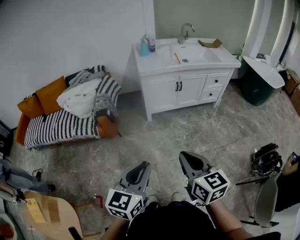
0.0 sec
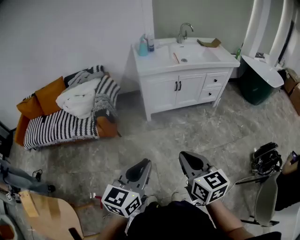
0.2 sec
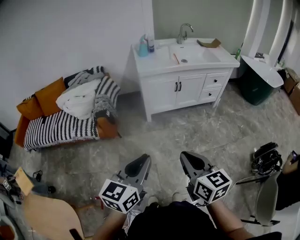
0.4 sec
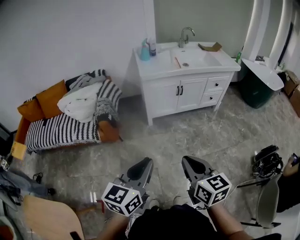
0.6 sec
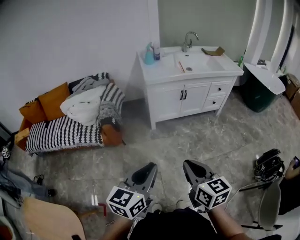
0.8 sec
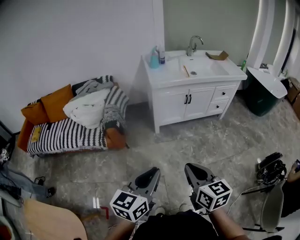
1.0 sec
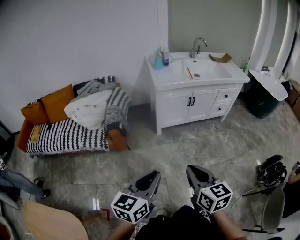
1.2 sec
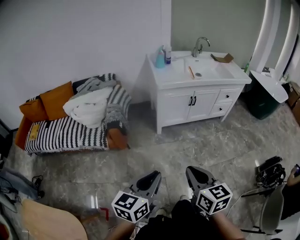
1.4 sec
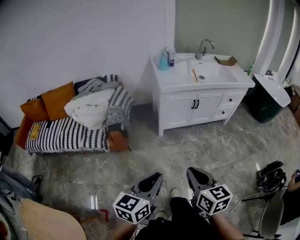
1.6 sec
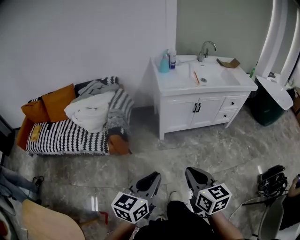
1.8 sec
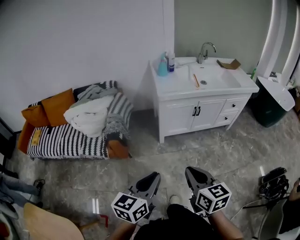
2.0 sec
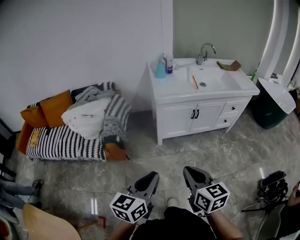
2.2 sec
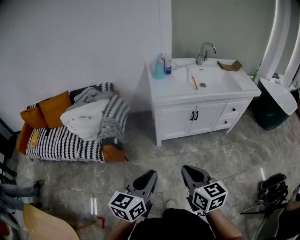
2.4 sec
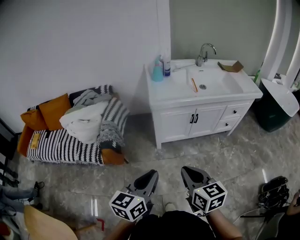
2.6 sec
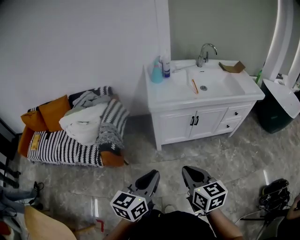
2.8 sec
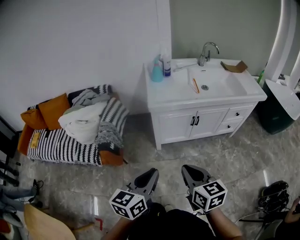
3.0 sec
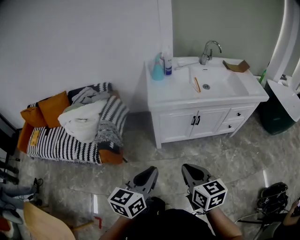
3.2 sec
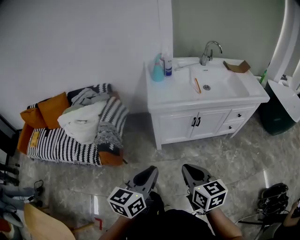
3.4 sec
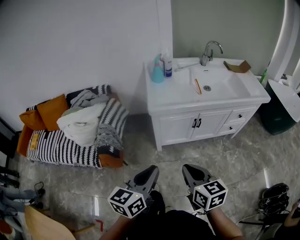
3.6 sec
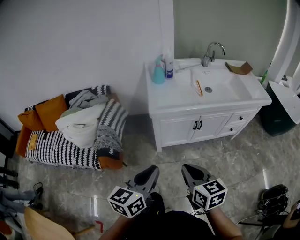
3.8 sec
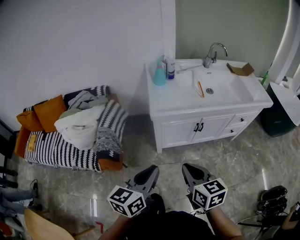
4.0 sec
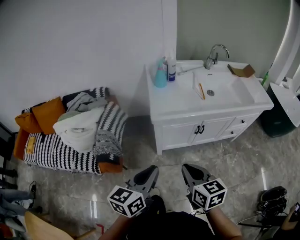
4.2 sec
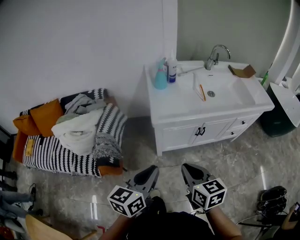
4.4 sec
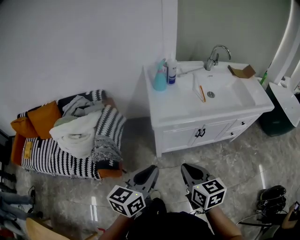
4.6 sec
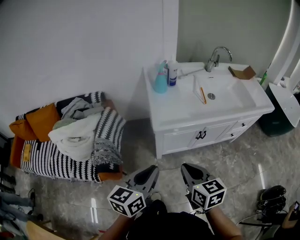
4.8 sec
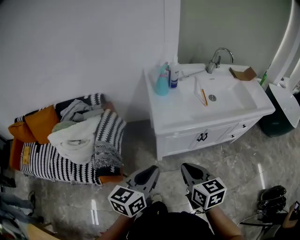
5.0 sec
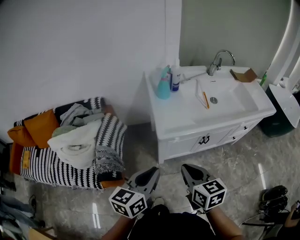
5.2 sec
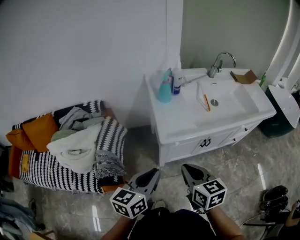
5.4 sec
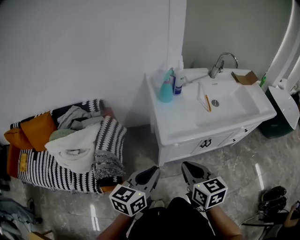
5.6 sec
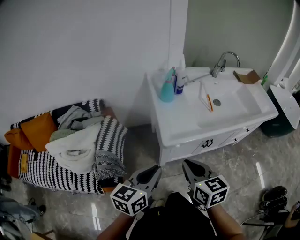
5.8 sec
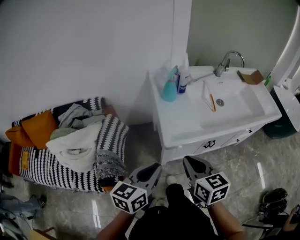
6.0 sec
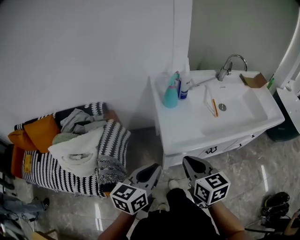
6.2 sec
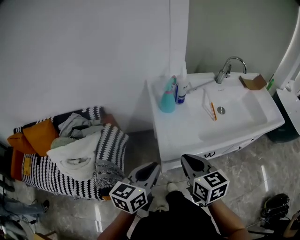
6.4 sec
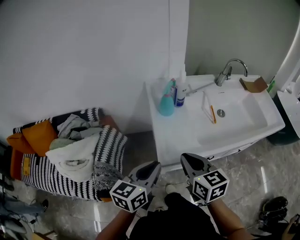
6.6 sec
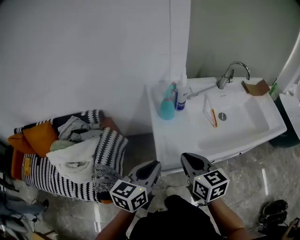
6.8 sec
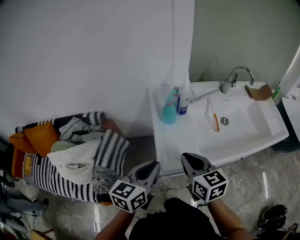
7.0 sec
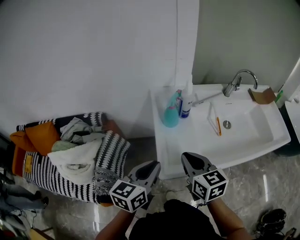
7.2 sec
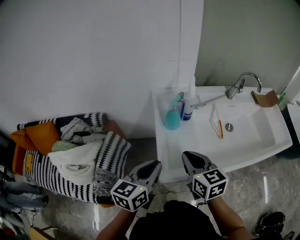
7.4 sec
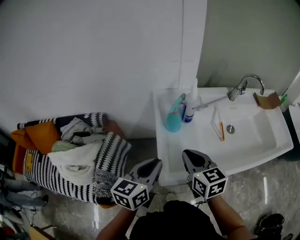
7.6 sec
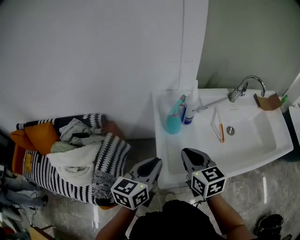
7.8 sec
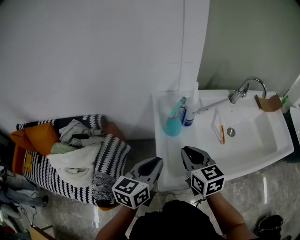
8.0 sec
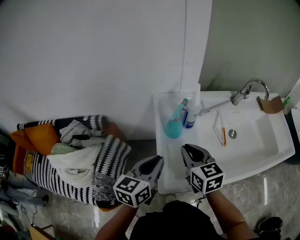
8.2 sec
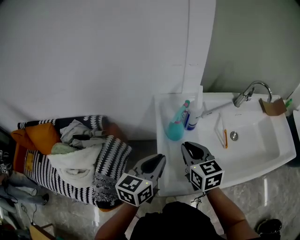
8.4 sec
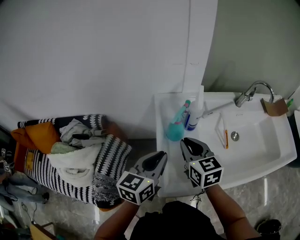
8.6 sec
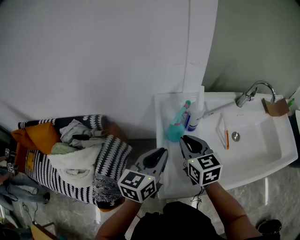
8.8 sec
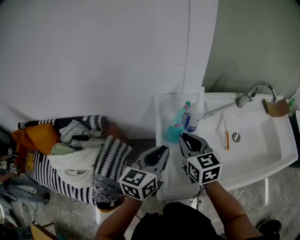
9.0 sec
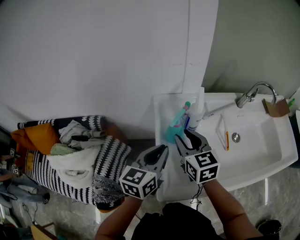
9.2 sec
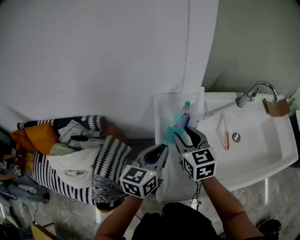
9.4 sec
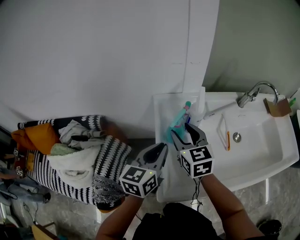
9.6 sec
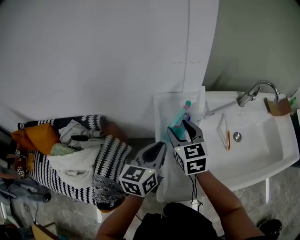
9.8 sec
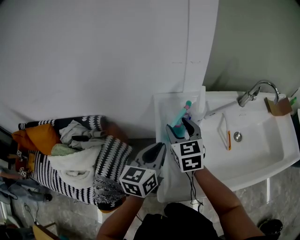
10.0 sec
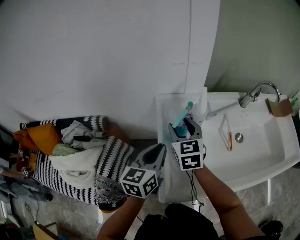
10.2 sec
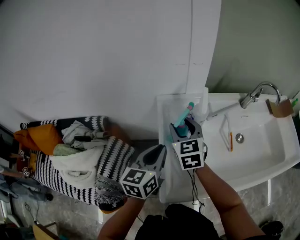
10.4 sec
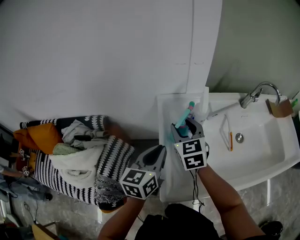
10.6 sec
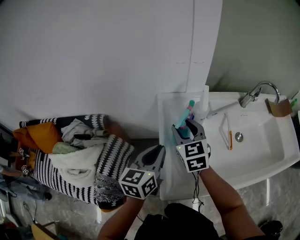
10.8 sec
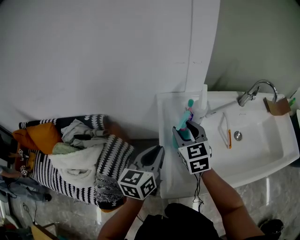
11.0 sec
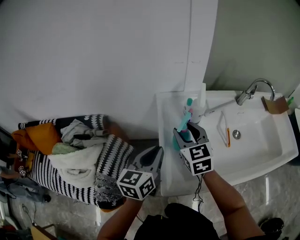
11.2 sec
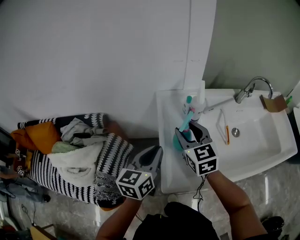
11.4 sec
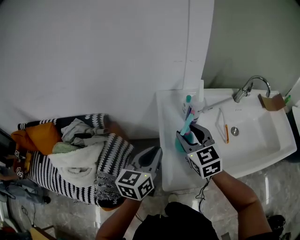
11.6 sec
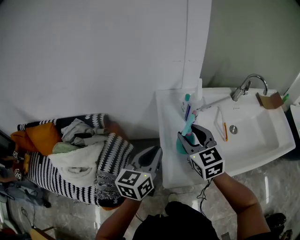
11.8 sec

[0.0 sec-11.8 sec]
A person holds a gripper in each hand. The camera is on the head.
0.0 sec to 1.4 sec: The left gripper moves to the left and forward, about 10 cm. Meanwhile the right gripper is displaced to the left by approximately 10 cm.
1.4 sec to 3.0 sec: The two grippers go approximately 25 cm forward.
3.0 sec to 4.4 sec: The two grippers go some 15 cm forward.
4.4 sec to 6.0 sec: Both grippers move forward and to the left, approximately 20 cm.
6.0 sec to 7.4 sec: Both grippers travel together forward, roughly 20 cm.
7.4 sec to 8.8 sec: Both grippers travel together forward, some 15 cm.
8.8 sec to 10.4 sec: The right gripper heads forward, covering about 10 cm, and opens.
10.4 sec to 11.8 sec: The two grippers go some 10 cm backward.

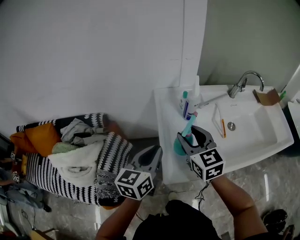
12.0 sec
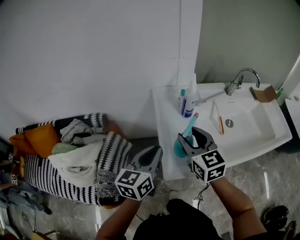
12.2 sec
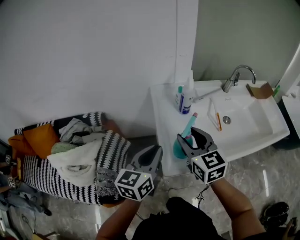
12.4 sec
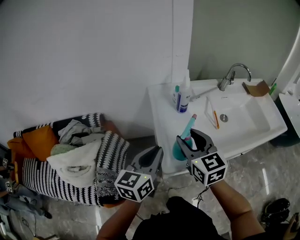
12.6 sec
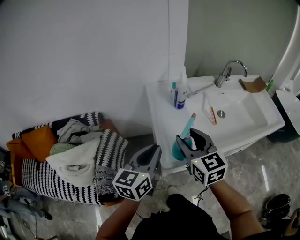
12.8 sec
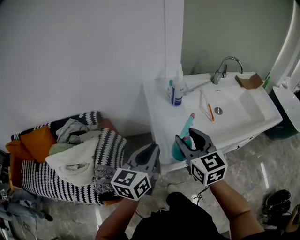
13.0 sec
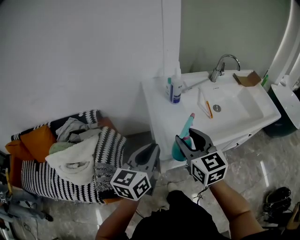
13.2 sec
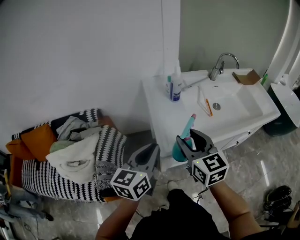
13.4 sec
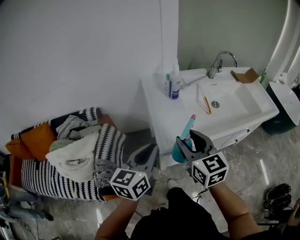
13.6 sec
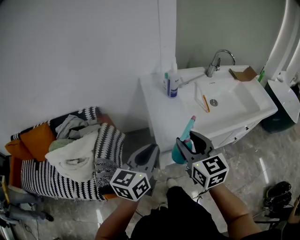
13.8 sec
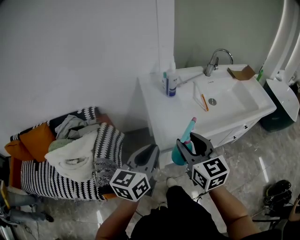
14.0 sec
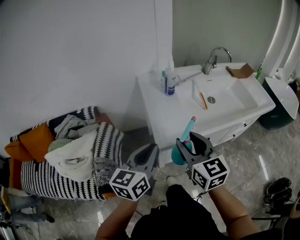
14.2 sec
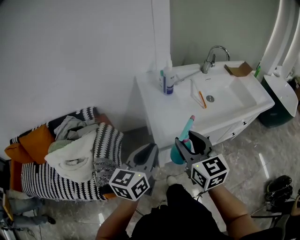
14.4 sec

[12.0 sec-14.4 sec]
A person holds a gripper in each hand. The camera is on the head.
12.0 sec to 13.2 sec: Both grippers move backward, roughly 15 cm.
13.2 sec to 14.4 sec: Both grippers move backward, roughly 5 cm.

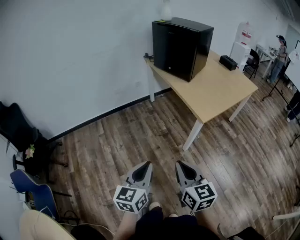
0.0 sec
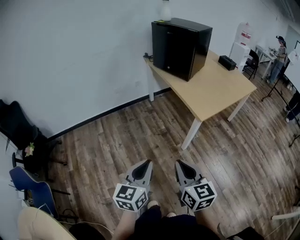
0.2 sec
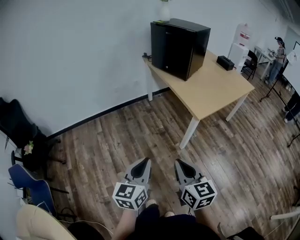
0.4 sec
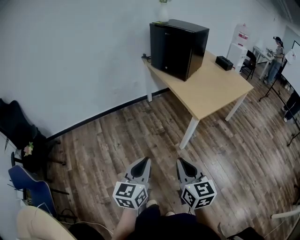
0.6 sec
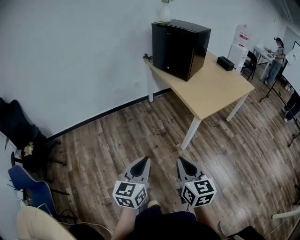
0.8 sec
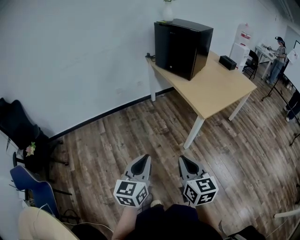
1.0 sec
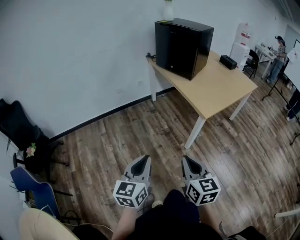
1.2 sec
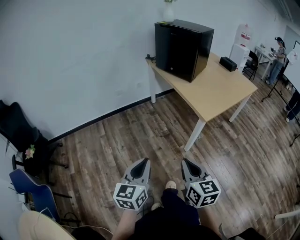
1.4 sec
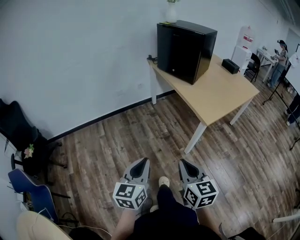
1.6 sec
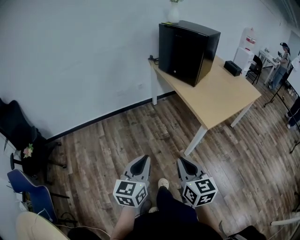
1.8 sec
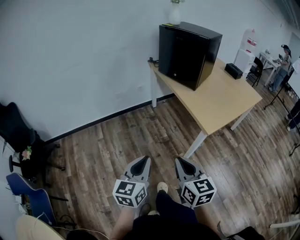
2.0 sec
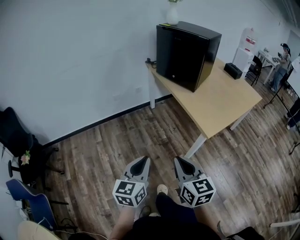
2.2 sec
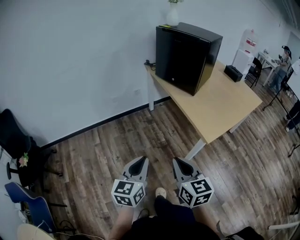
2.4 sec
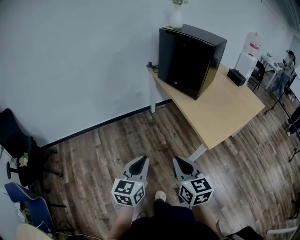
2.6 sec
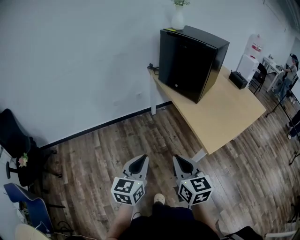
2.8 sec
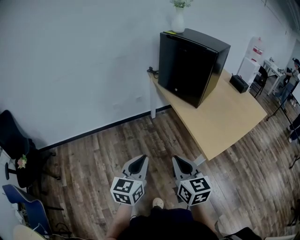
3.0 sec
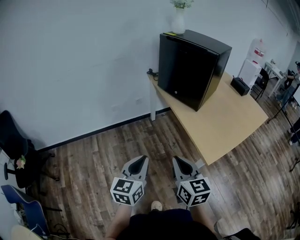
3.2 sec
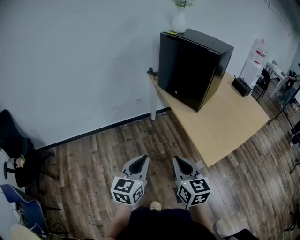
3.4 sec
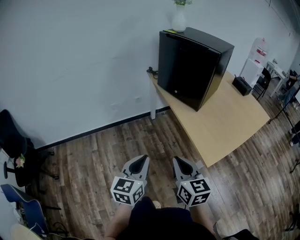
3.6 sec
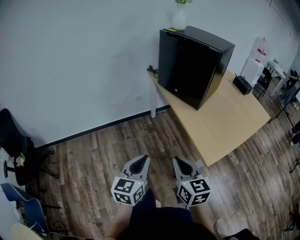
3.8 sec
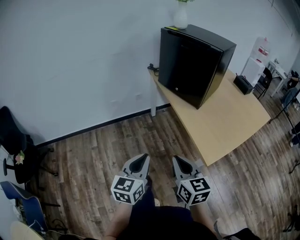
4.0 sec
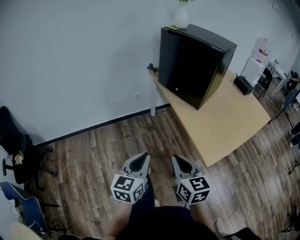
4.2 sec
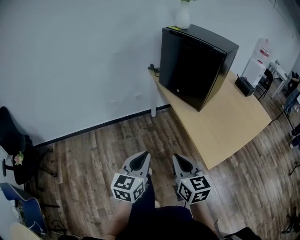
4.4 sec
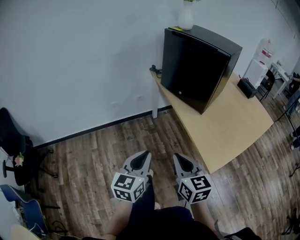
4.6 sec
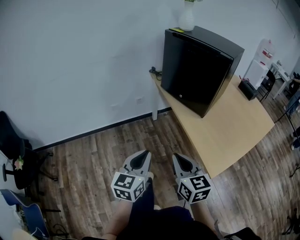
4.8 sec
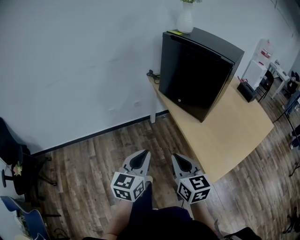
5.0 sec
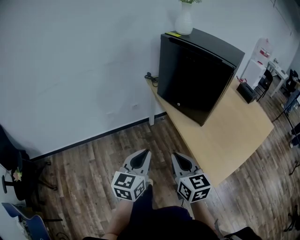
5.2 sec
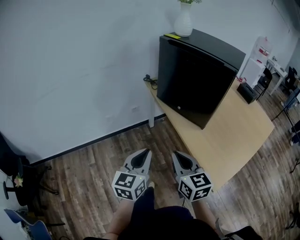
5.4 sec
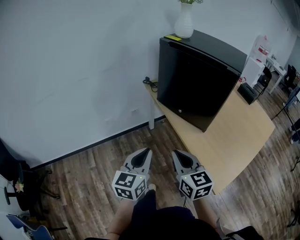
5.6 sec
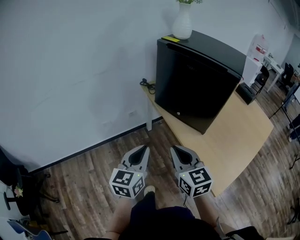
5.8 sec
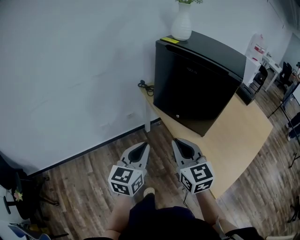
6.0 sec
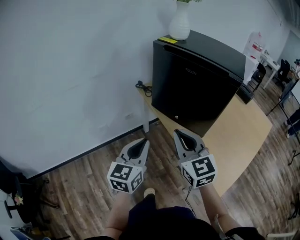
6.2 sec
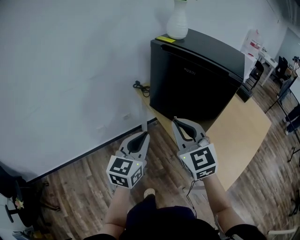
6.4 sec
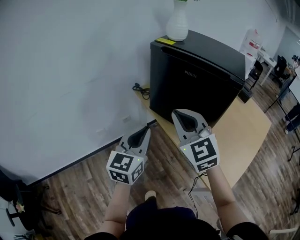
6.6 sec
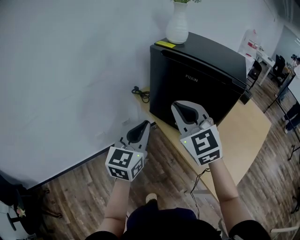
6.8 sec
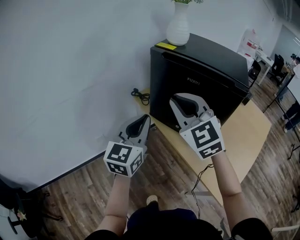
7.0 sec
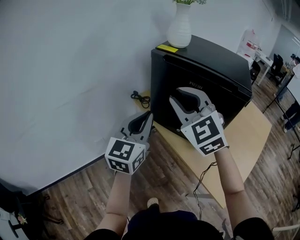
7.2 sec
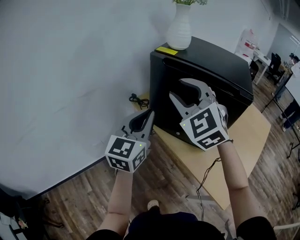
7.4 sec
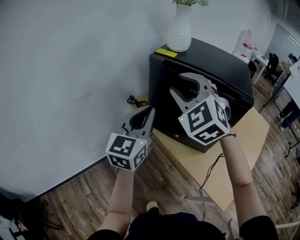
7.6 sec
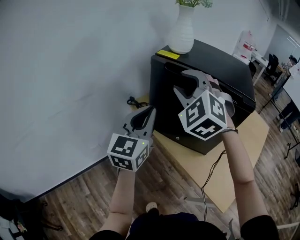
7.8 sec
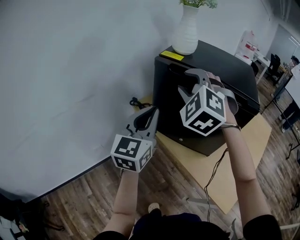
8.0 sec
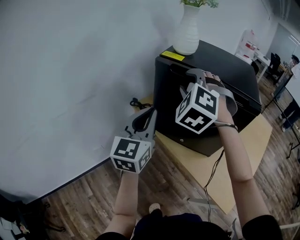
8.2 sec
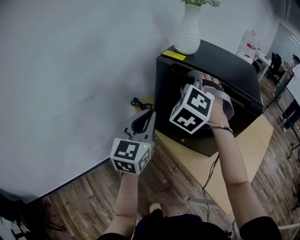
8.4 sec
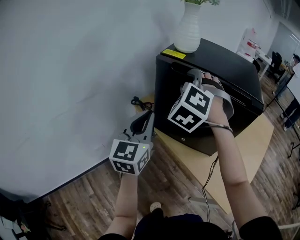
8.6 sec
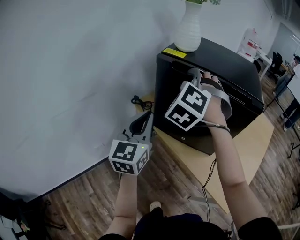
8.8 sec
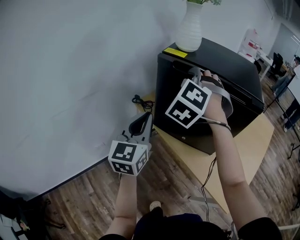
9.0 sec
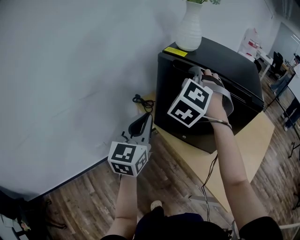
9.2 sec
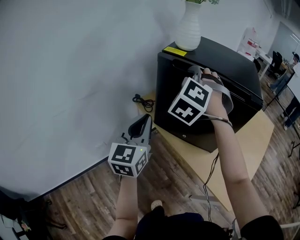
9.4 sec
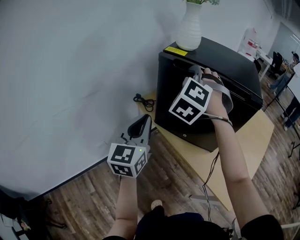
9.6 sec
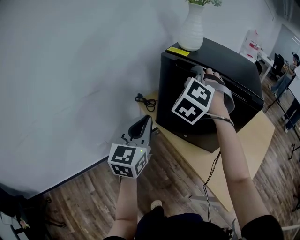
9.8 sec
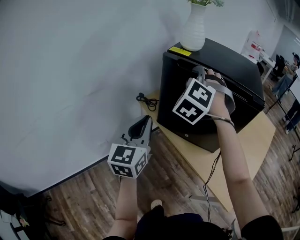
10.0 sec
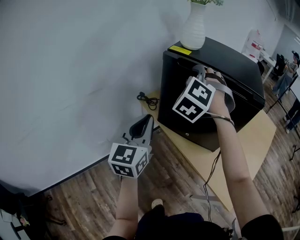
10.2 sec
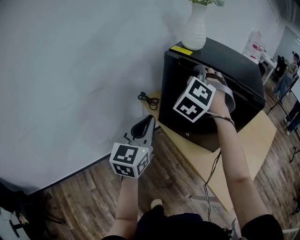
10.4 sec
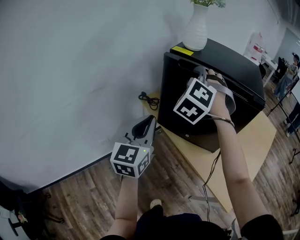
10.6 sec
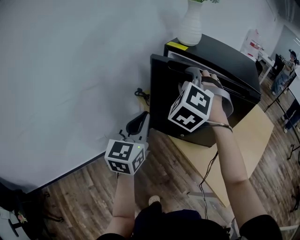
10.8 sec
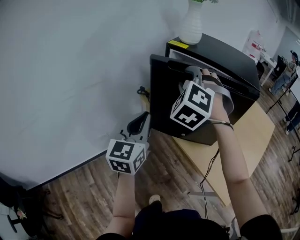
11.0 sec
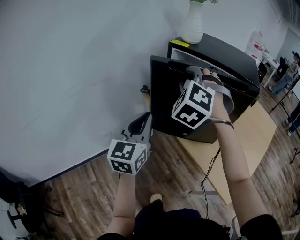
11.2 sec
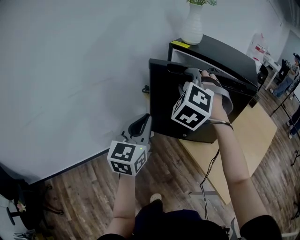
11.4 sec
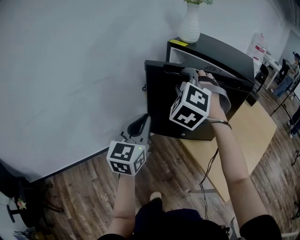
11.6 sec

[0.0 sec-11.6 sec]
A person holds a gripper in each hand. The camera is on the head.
0.0 sec to 1.4 sec: The grippers stay close to where they were, moving slightly.
1.4 sec to 2.8 sec: Both grippers travel together forward, roughly 25 cm.
2.8 sec to 4.4 sec: The grippers both shift forward by some 10 cm.
4.4 sec to 5.8 sec: Both grippers travel together forward, about 25 cm.
5.8 sec to 7.2 sec: The grippers both shift forward and upward by some 25 cm. The right gripper turns by about 40 degrees.
7.2 sec to 8.8 sec: The left gripper travels forward by about 5 cm. The right gripper moves forward, approximately 15 cm, and swivels roughly 50 degrees.
8.8 sec to 10.2 sec: There are only small adjustments of the grippers.
10.2 sec to 11.6 sec: Both grippers move backward, some 10 cm.
